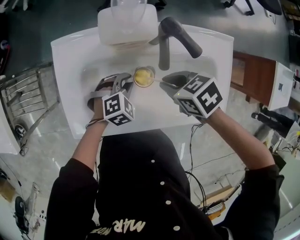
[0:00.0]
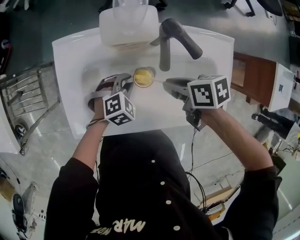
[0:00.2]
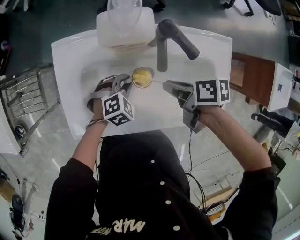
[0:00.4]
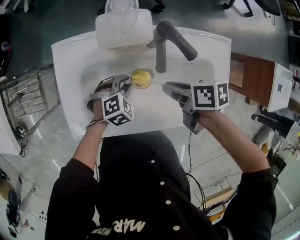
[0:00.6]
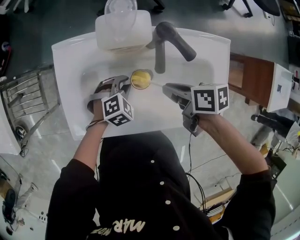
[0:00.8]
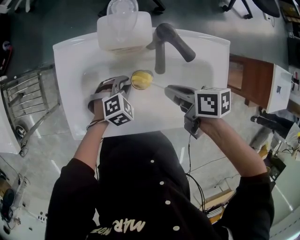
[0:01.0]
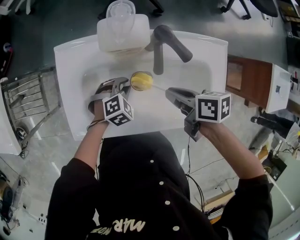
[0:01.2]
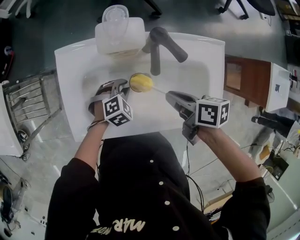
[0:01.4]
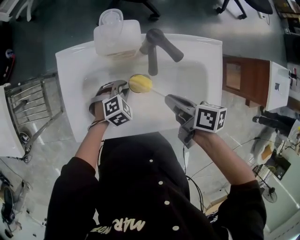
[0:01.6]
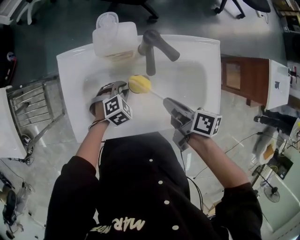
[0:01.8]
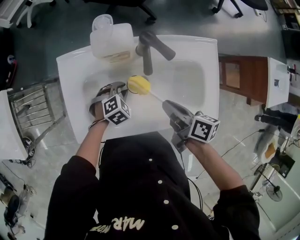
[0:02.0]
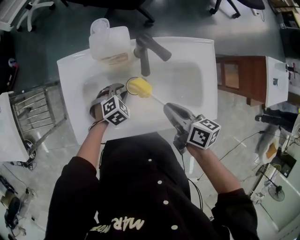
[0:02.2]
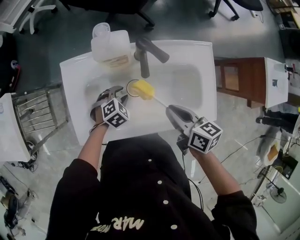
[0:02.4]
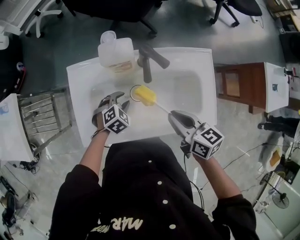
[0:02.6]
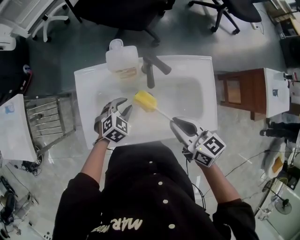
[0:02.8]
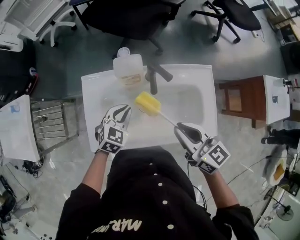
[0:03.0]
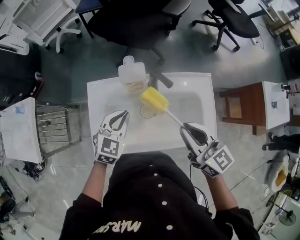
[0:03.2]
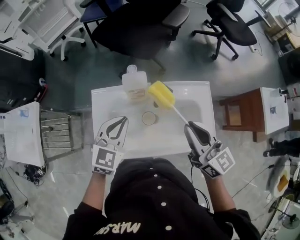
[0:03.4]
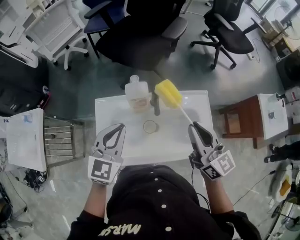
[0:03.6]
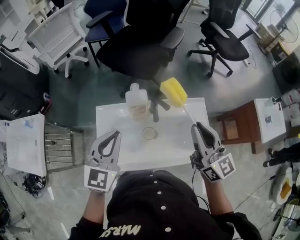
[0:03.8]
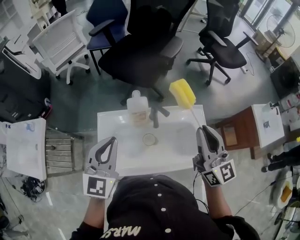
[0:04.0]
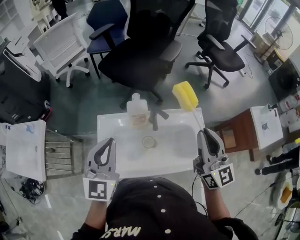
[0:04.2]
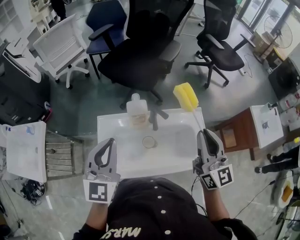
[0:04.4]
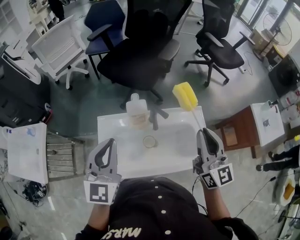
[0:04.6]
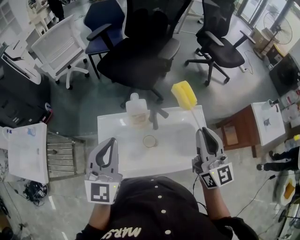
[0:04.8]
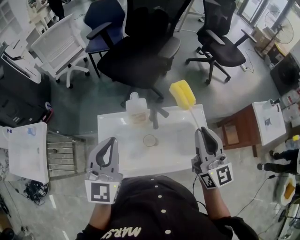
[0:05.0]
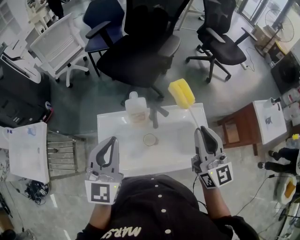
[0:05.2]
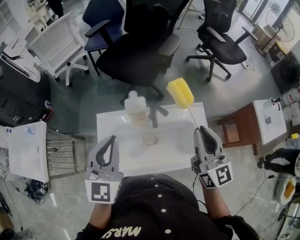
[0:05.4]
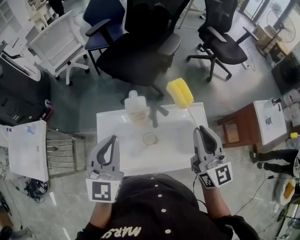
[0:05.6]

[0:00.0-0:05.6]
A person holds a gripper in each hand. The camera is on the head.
0:00.0 to 0:01.4: The right gripper moves roughly 5 cm, and rotates some 50 degrees.
0:01.4 to 0:02.8: The left gripper moves upward, roughly 10 cm, while the right gripper shifts some 10 cm upward and backward, and changes its angle by approximately 40 degrees.
0:02.8 to 0:04.2: The right gripper moves upward, approximately 25 cm, and tips its fingers upward by roughly 30 degrees. Meanwhile the left gripper shifts roughly 35 cm upward, angles its fingers upward, by roughly 50 degrees, and closes.
0:04.2 to 0:05.6: The grippers move only a little.

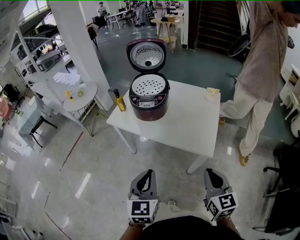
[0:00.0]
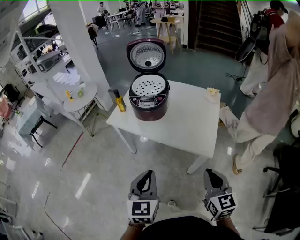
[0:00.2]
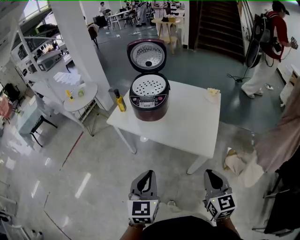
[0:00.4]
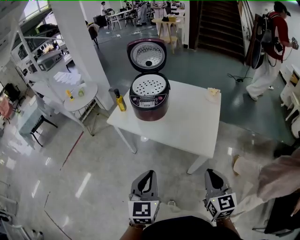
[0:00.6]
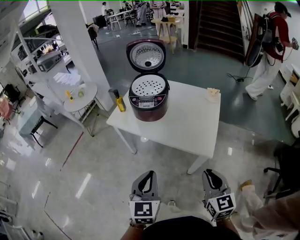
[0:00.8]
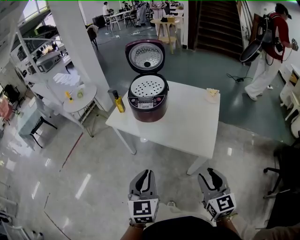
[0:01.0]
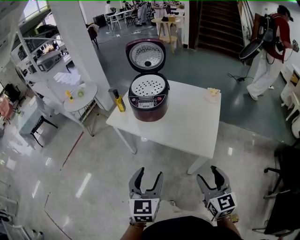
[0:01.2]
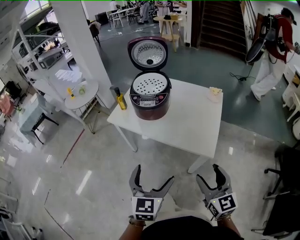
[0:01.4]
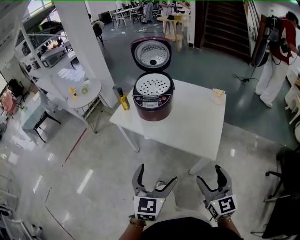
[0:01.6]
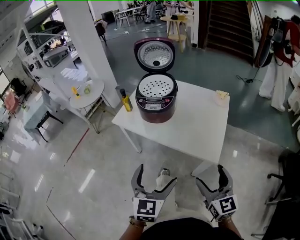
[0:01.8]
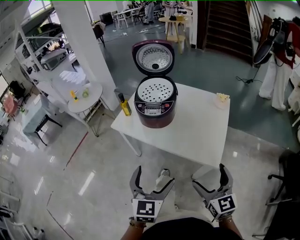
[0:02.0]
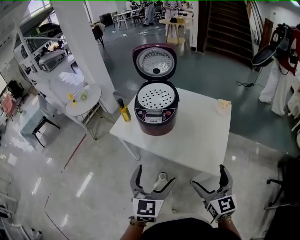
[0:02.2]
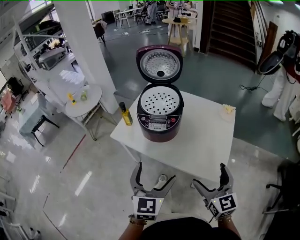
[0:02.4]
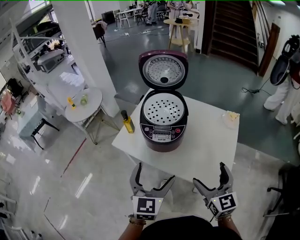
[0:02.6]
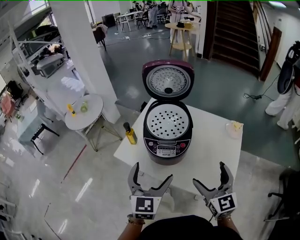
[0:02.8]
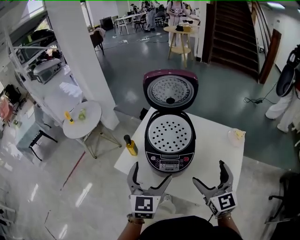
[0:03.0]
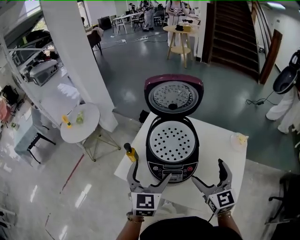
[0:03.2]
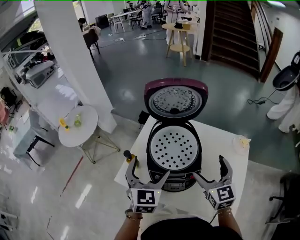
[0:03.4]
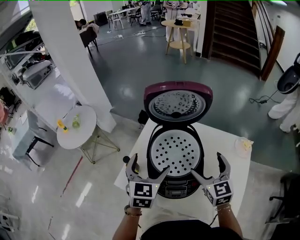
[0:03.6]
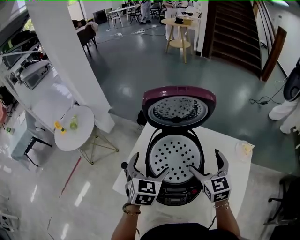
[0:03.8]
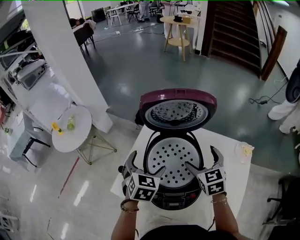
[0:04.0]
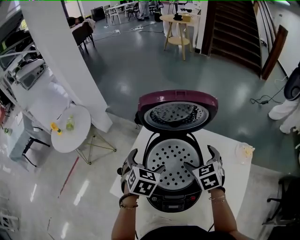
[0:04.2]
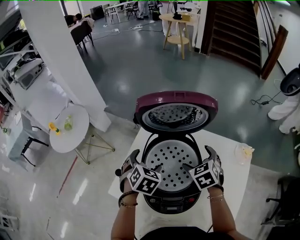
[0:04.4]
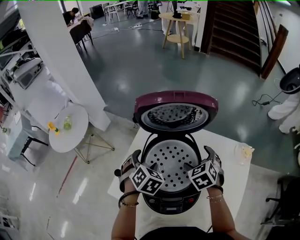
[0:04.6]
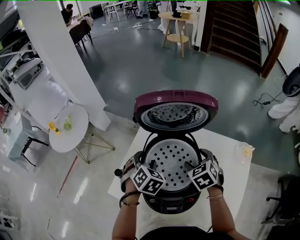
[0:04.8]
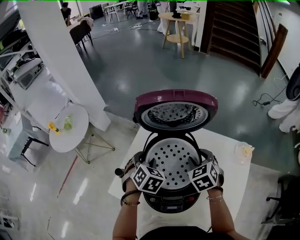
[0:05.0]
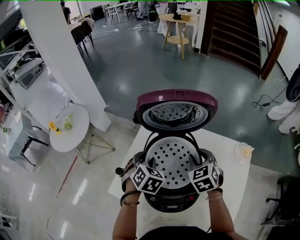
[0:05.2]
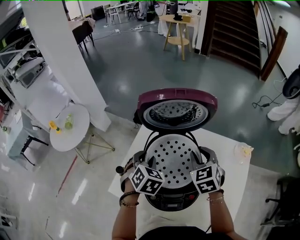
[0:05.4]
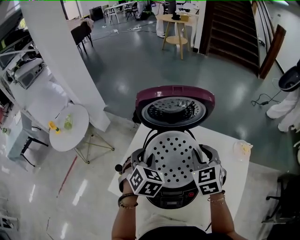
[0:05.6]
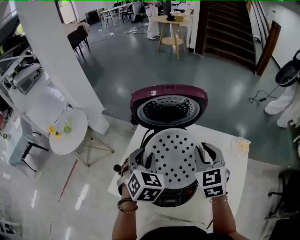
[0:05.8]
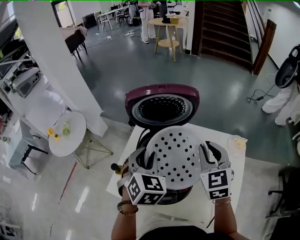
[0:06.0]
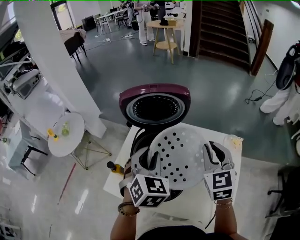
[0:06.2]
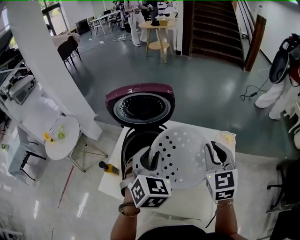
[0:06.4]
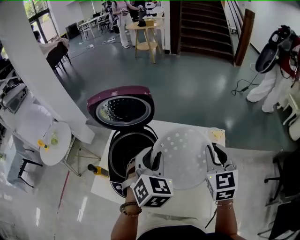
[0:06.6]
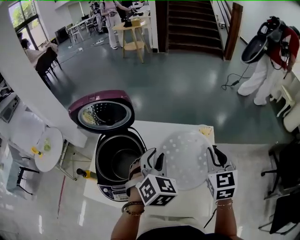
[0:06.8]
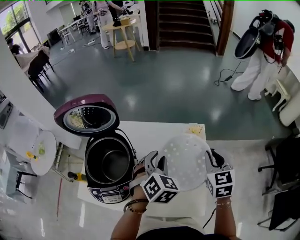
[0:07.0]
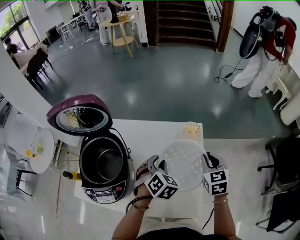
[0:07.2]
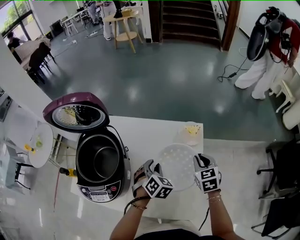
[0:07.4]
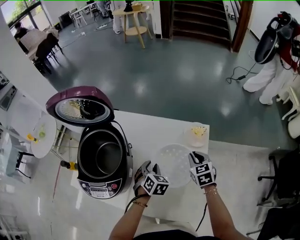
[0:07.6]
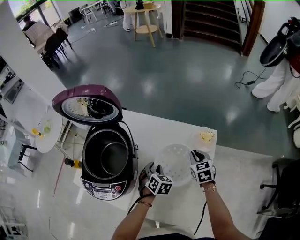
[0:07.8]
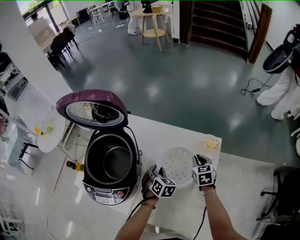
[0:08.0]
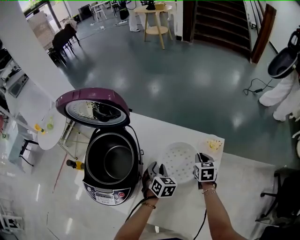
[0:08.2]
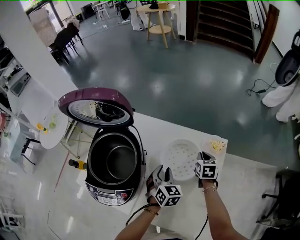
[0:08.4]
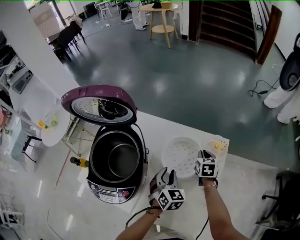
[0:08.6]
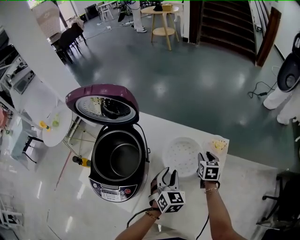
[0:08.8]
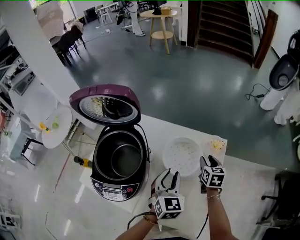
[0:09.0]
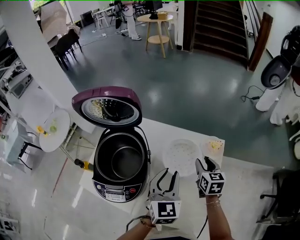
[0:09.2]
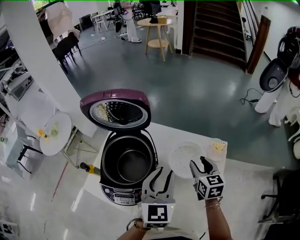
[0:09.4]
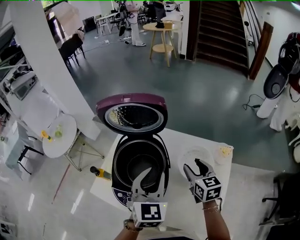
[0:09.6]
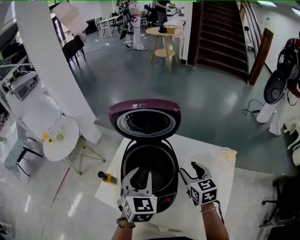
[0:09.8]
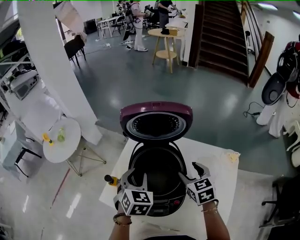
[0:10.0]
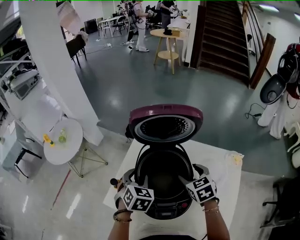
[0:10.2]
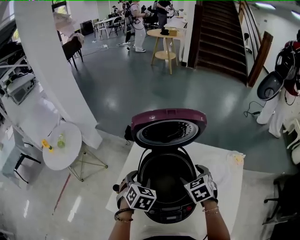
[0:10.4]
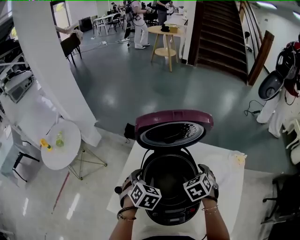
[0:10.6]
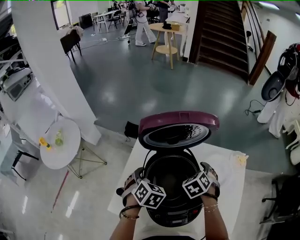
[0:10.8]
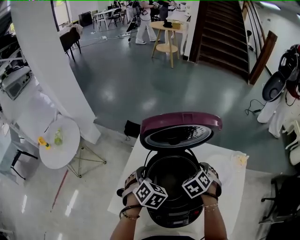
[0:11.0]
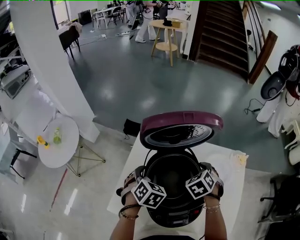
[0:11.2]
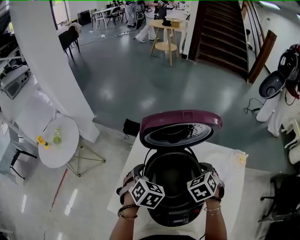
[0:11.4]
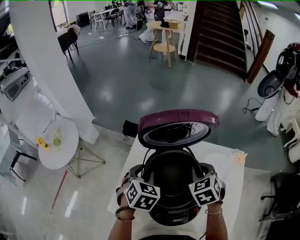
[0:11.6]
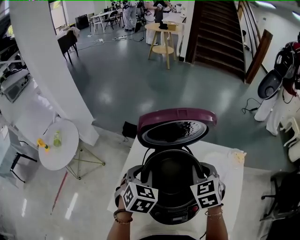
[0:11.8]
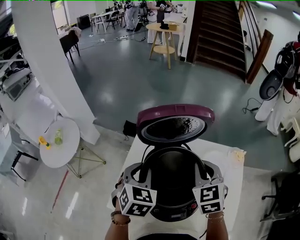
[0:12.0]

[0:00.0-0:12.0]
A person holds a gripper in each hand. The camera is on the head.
0:00.0 to 0:01.6: The right gripper opens, while the left gripper opens its fingers.
0:01.6 to 0:03.0: Both grippers travel together forward, about 35 cm. The right gripper opens its fingers.
0:03.0 to 0:04.4: The grippers both shift forward and downward by approximately 30 cm. The right gripper points its fingers roughly 40 degrees further downward. Meanwhile the left gripper points its fingers roughly 40 degrees further downward.
0:04.4 to 0:06.0: The two grippers go roughly 15 cm upward. The left gripper closes its fingers; the right gripper rotates some 30 degrees, and closes.
0:06.0 to 0:07.6: Both grippers move to the right and downward, about 40 cm. The right gripper rotates about 30 degrees.
0:07.6 to 0:09.0: The right gripper heads forward, covering about 5 cm, and rotates some 20 degrees; the left gripper is displaced upward by some 10 cm, and rotates roughly 30 degrees.
0:09.0 to 0:10.4: Both grippers travel together to the left, roughly 35 cm. The right gripper turns by about 30 degrees. Meanwhile the left gripper changes its angle by approximately 20 degrees.
0:10.4 to 0:12.0: The grippers both shift upward by about 10 cm. The right gripper rotates approximately 20 degrees, and closes up.

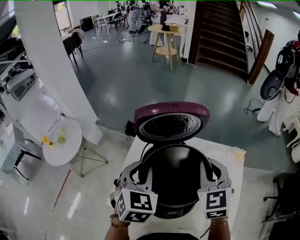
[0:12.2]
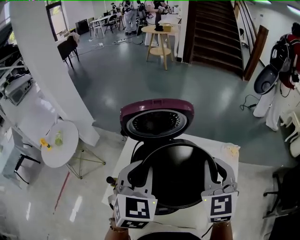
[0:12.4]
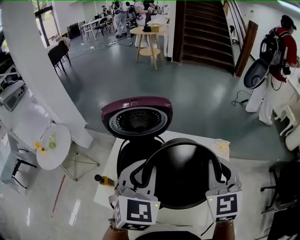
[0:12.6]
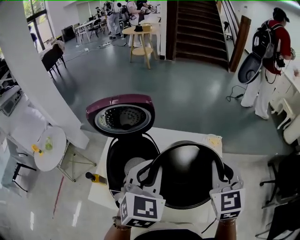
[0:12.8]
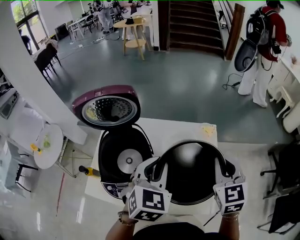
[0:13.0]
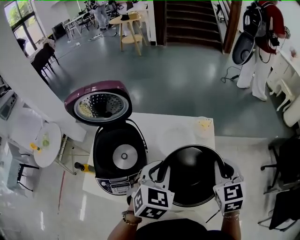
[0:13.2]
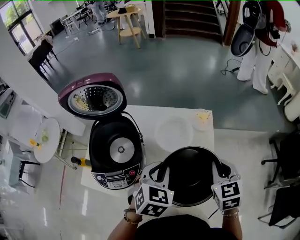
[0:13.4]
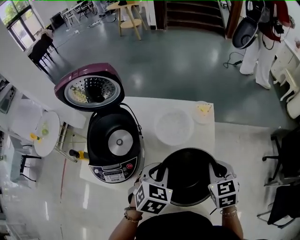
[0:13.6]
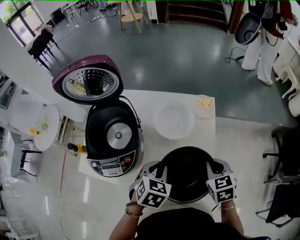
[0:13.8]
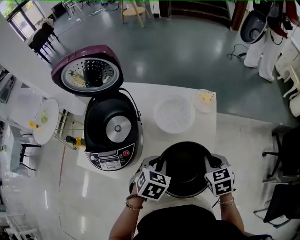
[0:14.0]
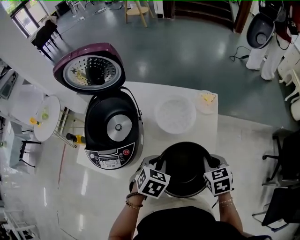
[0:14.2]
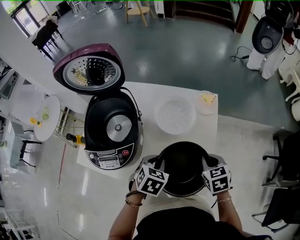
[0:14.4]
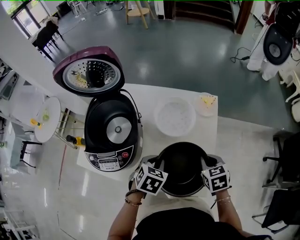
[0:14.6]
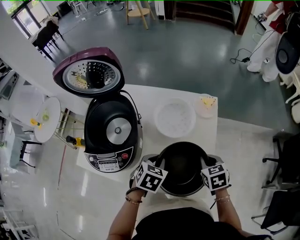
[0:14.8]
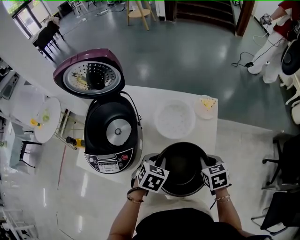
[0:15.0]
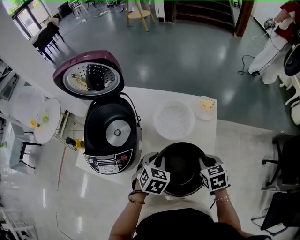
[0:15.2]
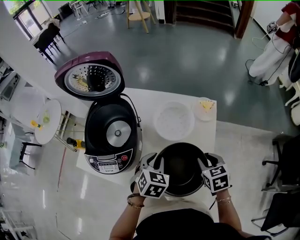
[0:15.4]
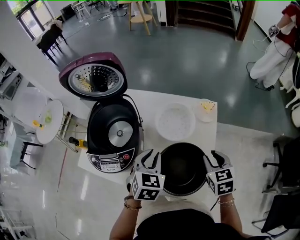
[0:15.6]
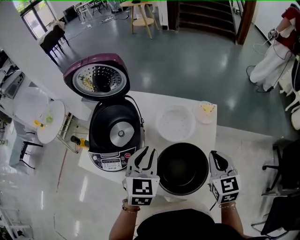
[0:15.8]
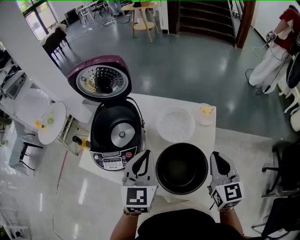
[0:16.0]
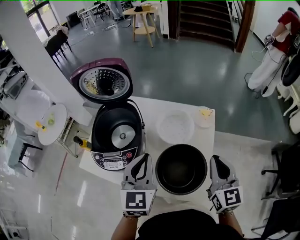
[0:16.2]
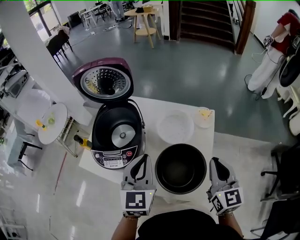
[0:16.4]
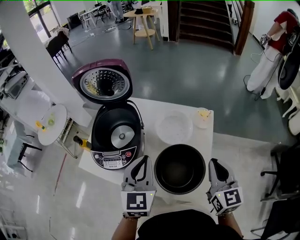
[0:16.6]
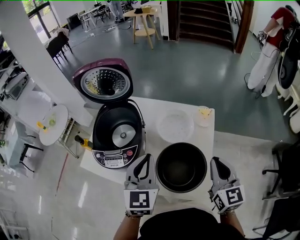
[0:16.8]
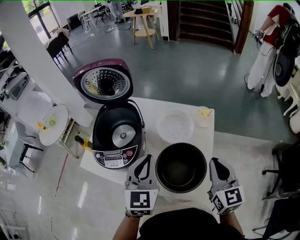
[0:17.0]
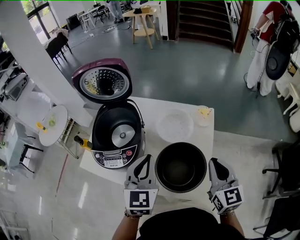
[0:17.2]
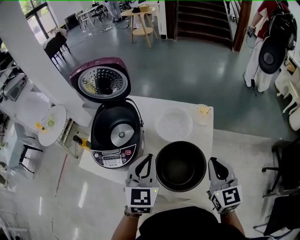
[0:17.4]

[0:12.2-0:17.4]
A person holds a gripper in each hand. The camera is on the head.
0:12.2 to 0:14.0: Both grippers move to the right and downward, roughly 40 cm. The left gripper rotates about 30 degrees. The right gripper points its fingers approximately 30 degrees further downward.
0:14.0 to 0:15.6: The left gripper shifts by some 5 cm, and rotates some 20 degrees.
0:15.6 to 0:17.4: The left gripper moves upward, roughly 10 cm, and turns by about 20 degrees; the right gripper heads upward and backward, covering some 15 cm, and rotates about 30 degrees.
